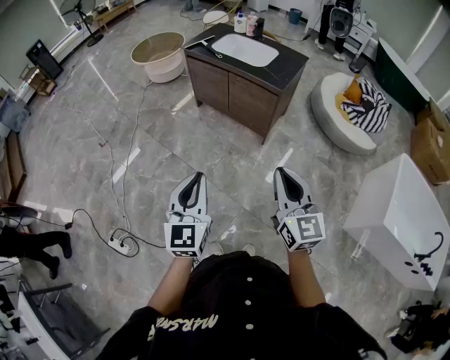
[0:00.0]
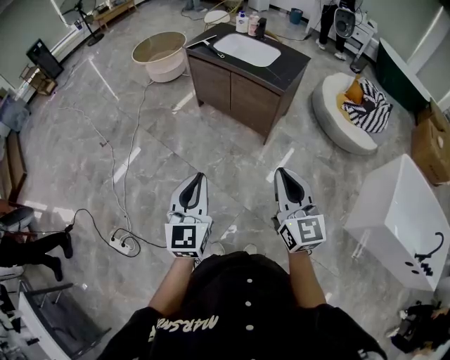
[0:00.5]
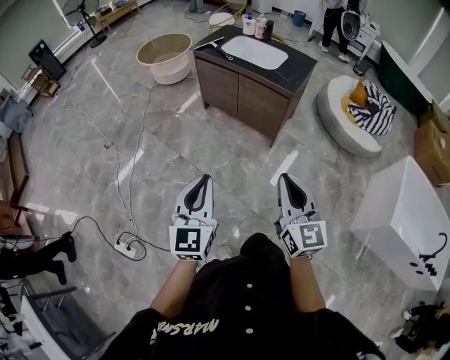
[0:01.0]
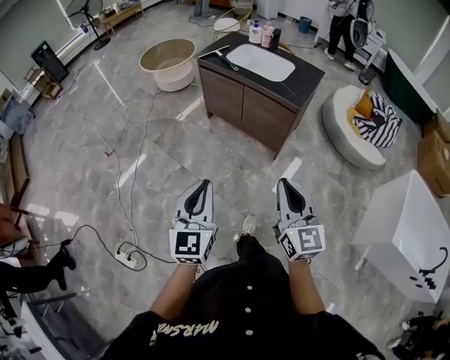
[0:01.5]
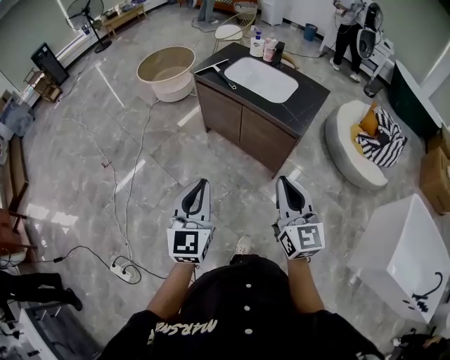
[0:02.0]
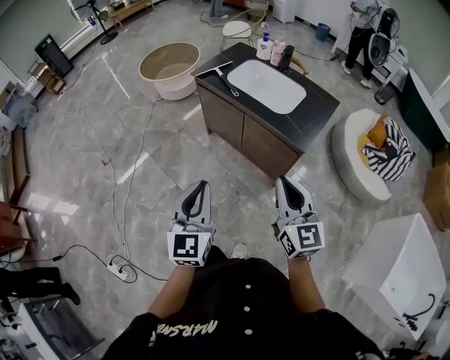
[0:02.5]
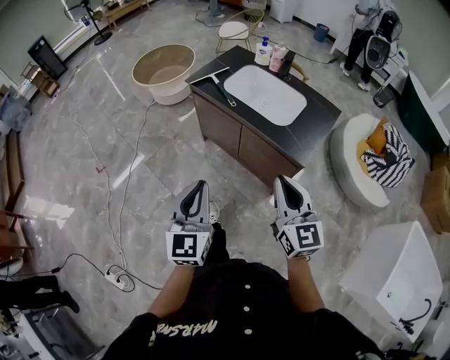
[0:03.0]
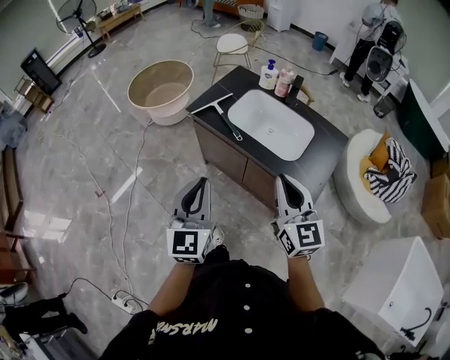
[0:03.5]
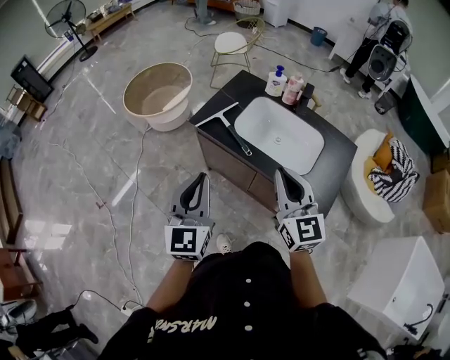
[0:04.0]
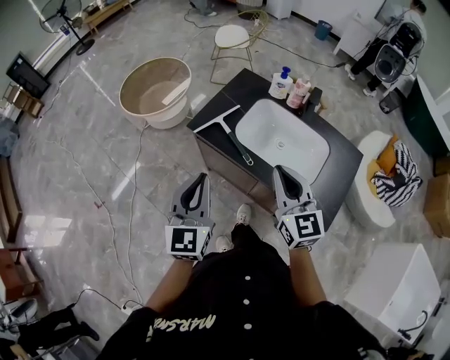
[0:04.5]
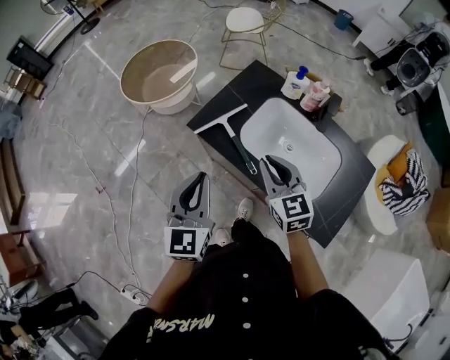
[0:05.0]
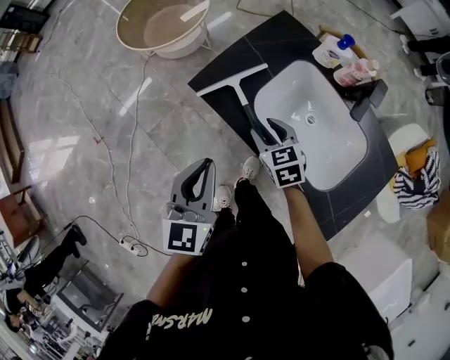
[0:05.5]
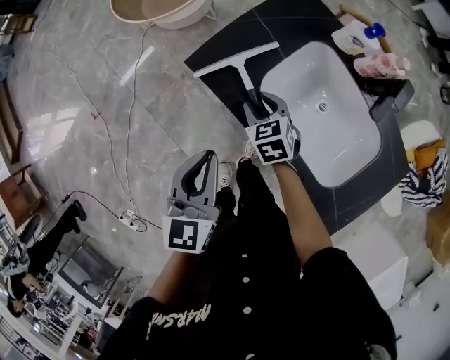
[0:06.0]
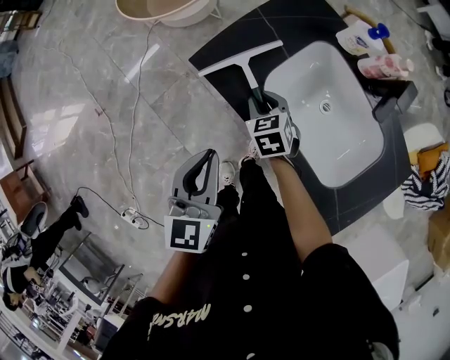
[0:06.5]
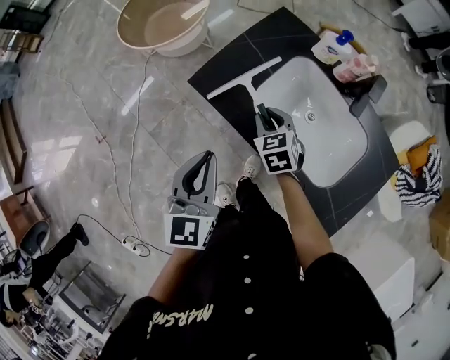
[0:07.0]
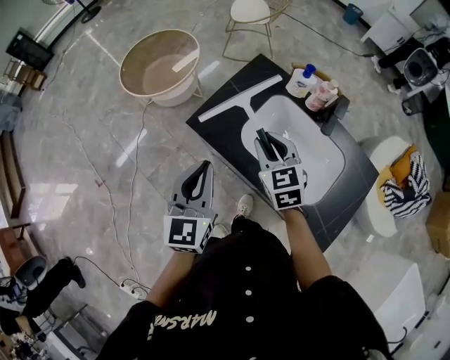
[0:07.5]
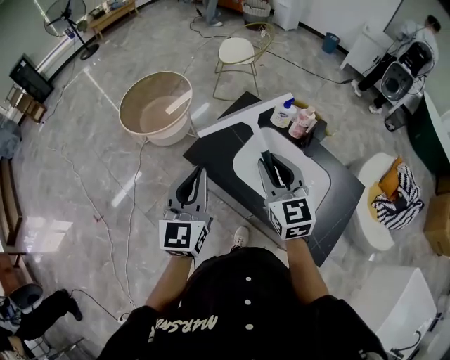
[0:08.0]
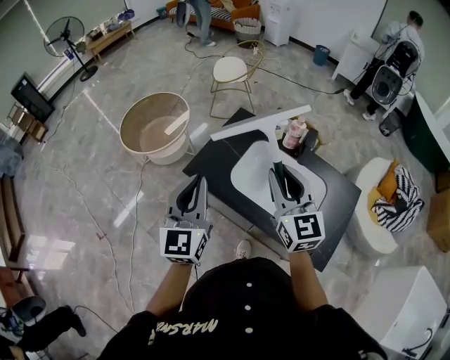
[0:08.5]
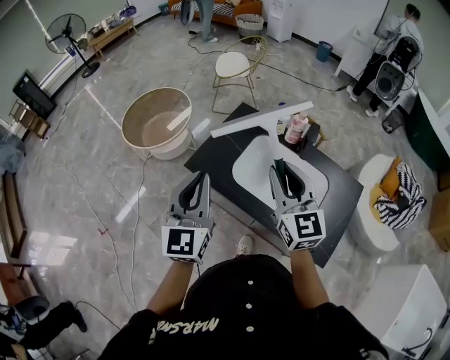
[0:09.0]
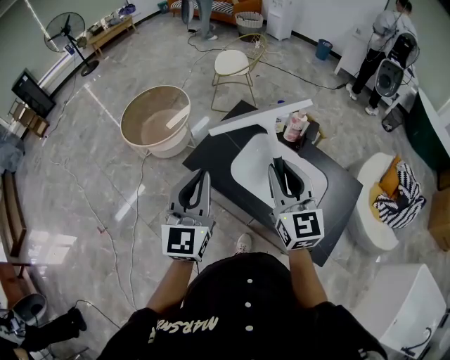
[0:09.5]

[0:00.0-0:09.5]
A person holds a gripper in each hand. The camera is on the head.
0:00.0 to 0:02.0: Both grippers move forward, about 25 cm.
0:02.0 to 0:04.0: Both grippers are carried forward, approximately 50 cm.
0:04.0 to 0:05.5: The right gripper shifts about 40 cm downward and forward, tilts its fingers approximately 40 degrees downward, and opens up. Meanwhile the left gripper travels forward and downward by roughly 25 cm.
0:05.5 to 0:07.5: The left gripper shifts about 5 cm upward. The right gripper goes about 15 cm upward, and closes up.
0:07.5 to 0:09.5: The left gripper travels upward by roughly 10 cm. The right gripper goes roughly 20 cm upward and backward, and rotates some 30 degrees.

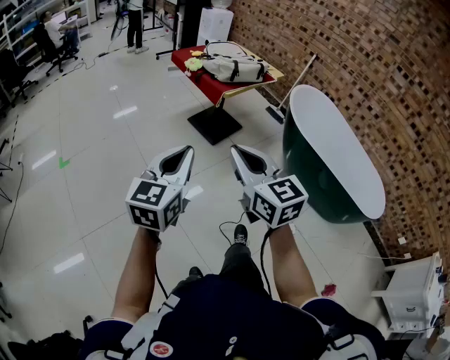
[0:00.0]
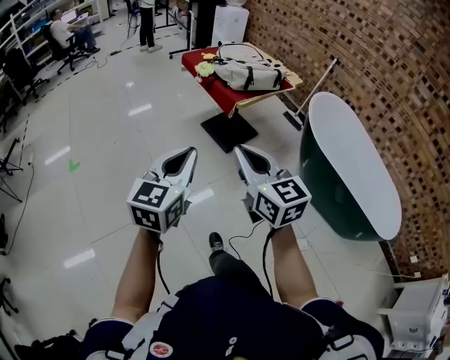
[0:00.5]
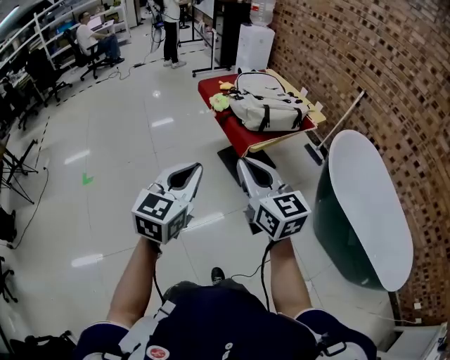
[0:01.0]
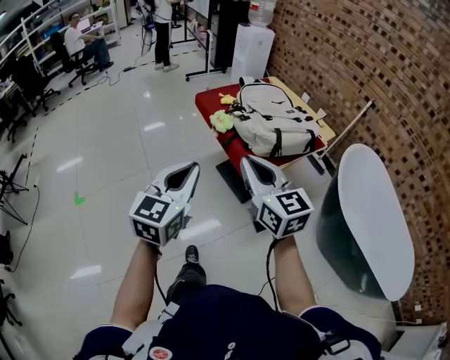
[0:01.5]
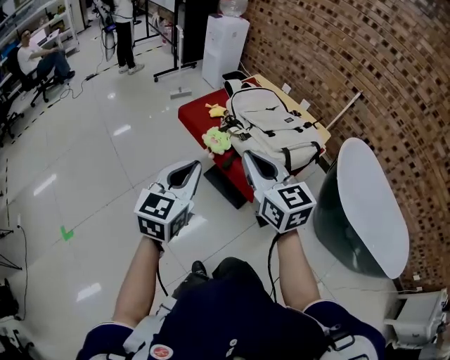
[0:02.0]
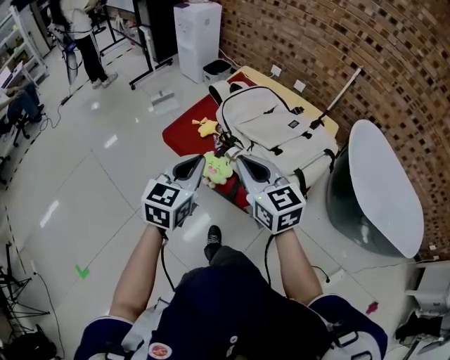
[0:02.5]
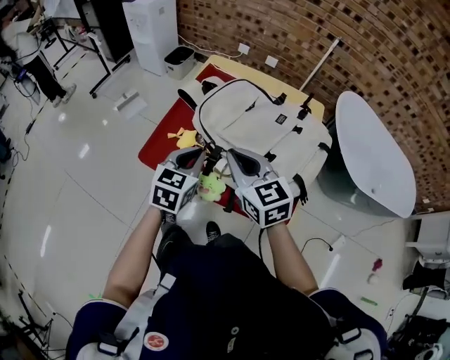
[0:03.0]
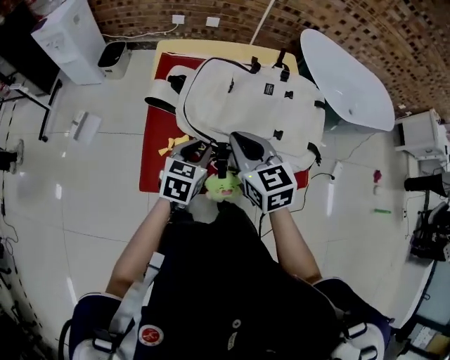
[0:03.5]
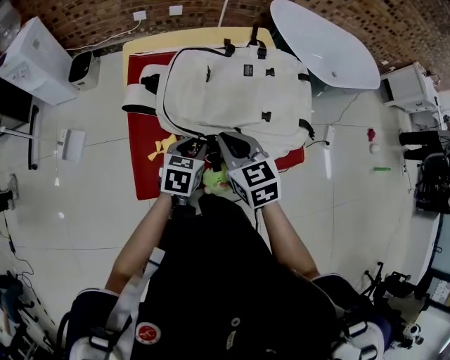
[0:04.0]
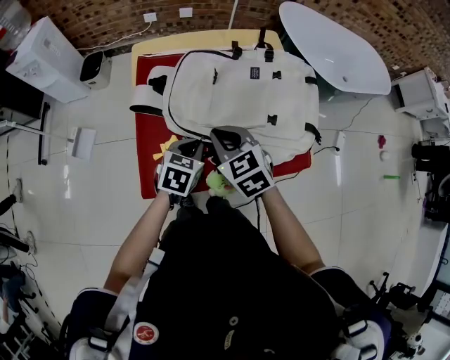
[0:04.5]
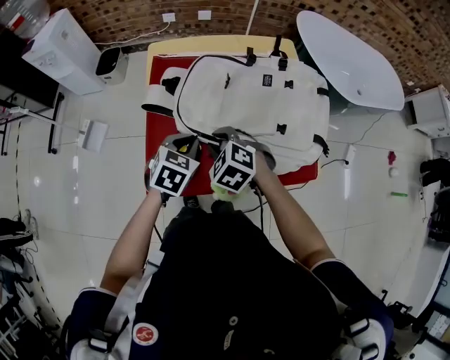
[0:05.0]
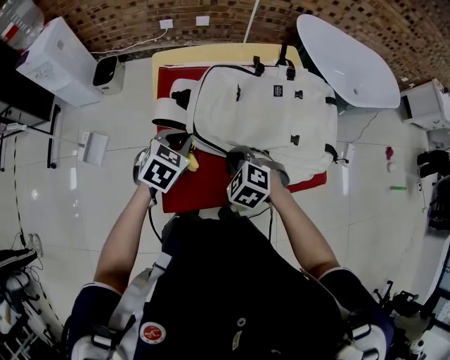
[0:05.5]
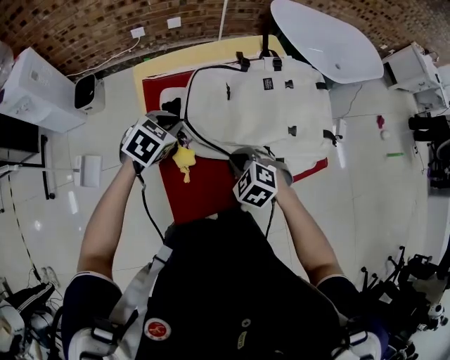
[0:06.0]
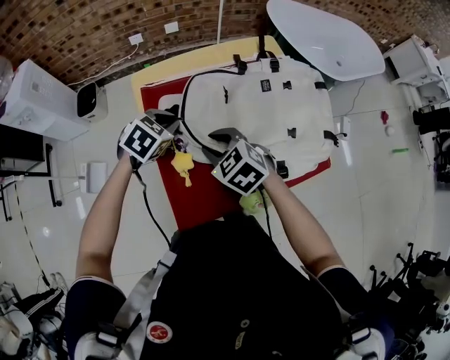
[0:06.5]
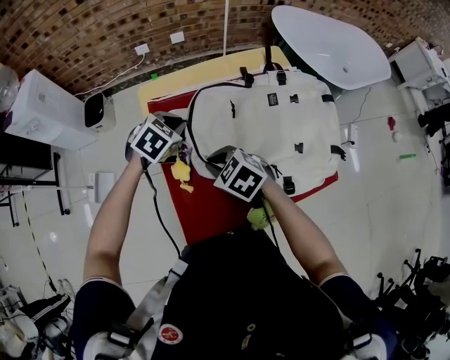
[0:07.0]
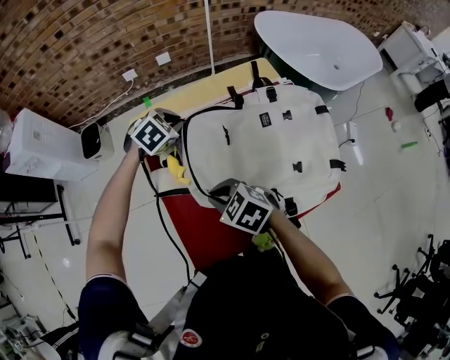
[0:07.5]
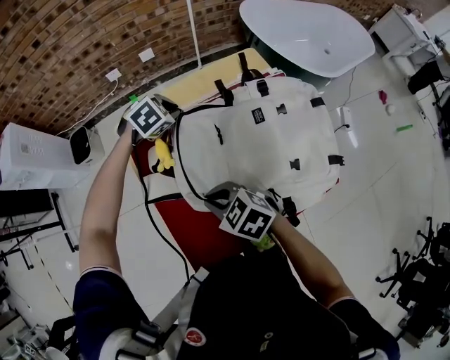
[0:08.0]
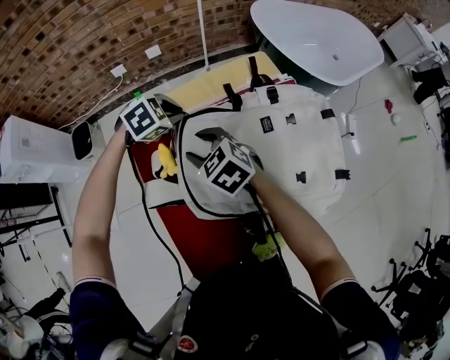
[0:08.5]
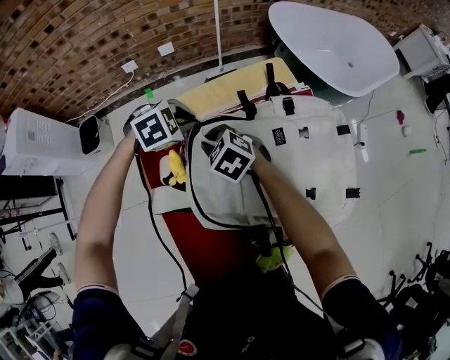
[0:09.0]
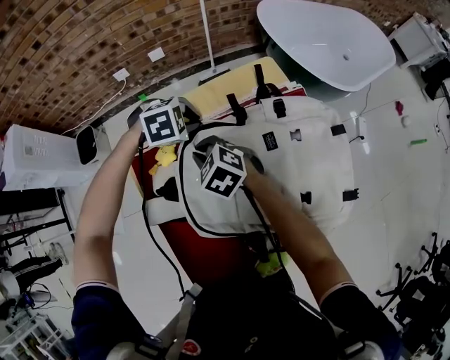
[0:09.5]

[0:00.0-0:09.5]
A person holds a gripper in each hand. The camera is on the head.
0:00.0 to 0:02.0: The pair of grippers is taken forward, roughly 60 cm.
0:02.0 to 0:04.0: The left gripper changes place by approximately 50 cm, angles its fingers downward, by roughly 30 degrees, and opens, while the right gripper changes place by approximately 35 cm, and changes its angle by some 60 degrees.
0:04.0 to 0:05.5: The right gripper heads downward and to the left, covering about 10 cm, and rotates approximately 50 degrees. Meanwhile the left gripper moves to the left and forward, about 15 cm, turns by some 20 degrees, and closes its fingers.
0:05.5 to 0:07.5: The left gripper moves forward, some 25 cm, and rotates approximately 30 degrees; the right gripper heads to the left and forward, covering about 10 cm, swivels some 30 degrees, and opens, then closes once more.
0:07.5 to 0:09.5: The left gripper moves some 10 cm, and changes its angle by some 30 degrees. Meanwhile the right gripper changes place by roughly 20 cm, and opens, then closes once more.

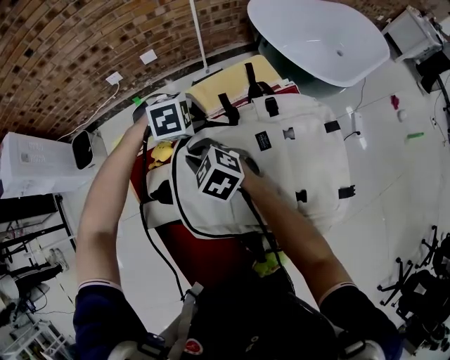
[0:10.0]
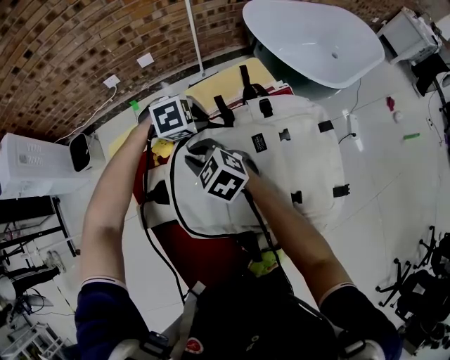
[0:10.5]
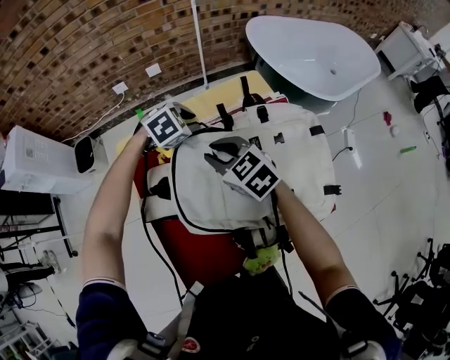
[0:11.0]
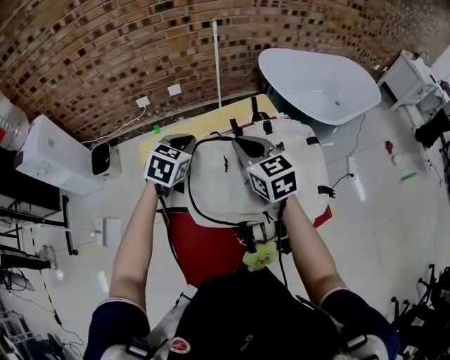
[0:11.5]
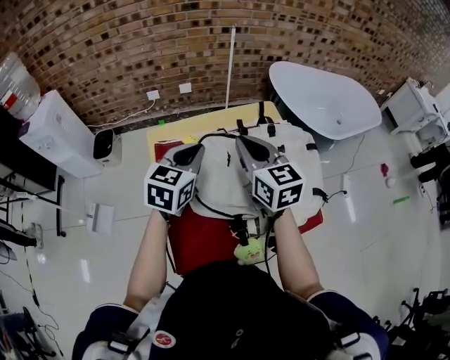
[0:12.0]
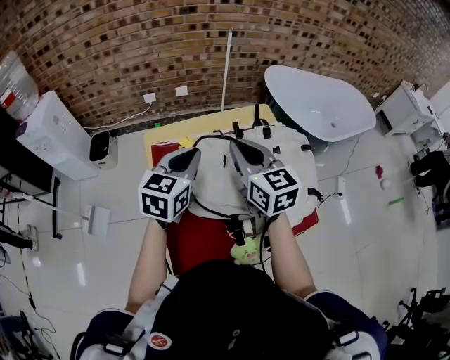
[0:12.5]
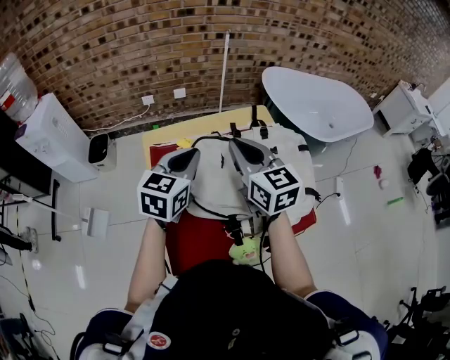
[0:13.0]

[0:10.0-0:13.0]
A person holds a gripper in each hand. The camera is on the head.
0:10.0 to 0:11.5: Both grippers move upward, some 15 cm. The left gripper turns by about 60 degrees, while the right gripper swivels approximately 40 degrees.
0:11.5 to 0:13.0: The right gripper heads upward and backward, covering approximately 10 cm; the left gripper moves backward and upward, approximately 15 cm, and turns by some 20 degrees.

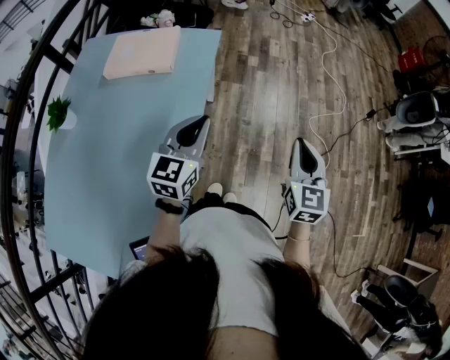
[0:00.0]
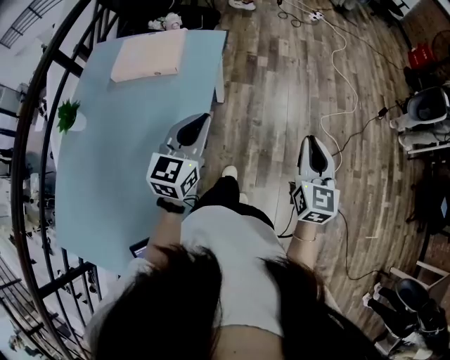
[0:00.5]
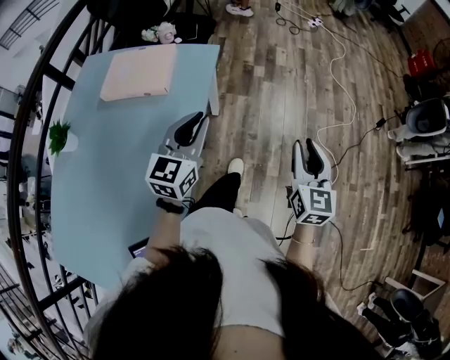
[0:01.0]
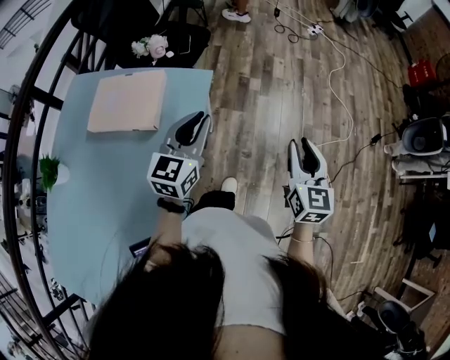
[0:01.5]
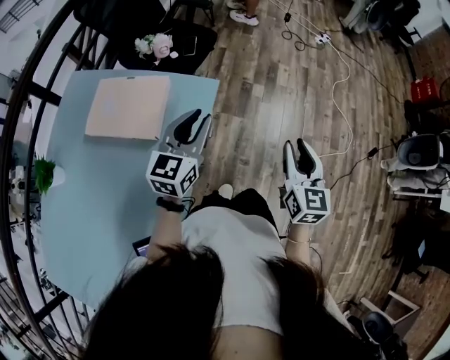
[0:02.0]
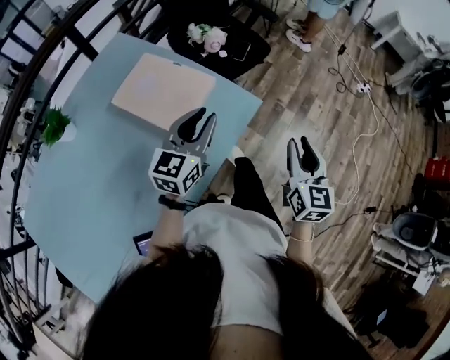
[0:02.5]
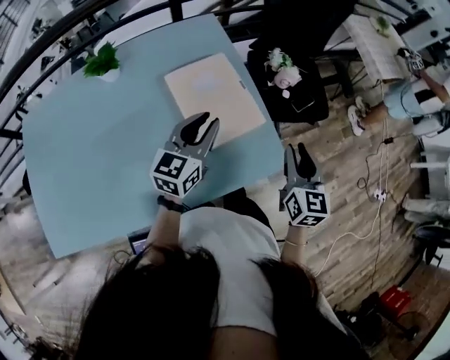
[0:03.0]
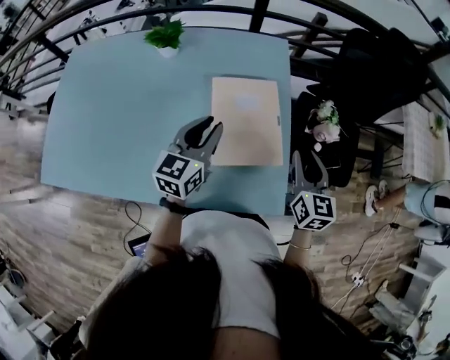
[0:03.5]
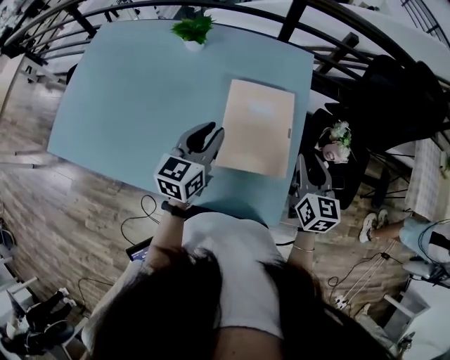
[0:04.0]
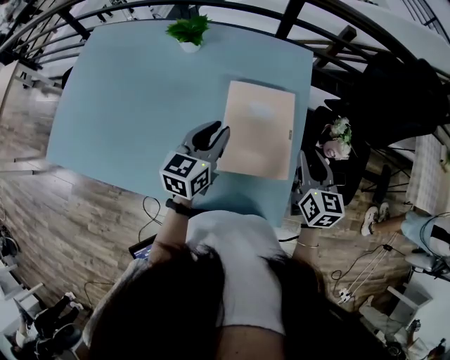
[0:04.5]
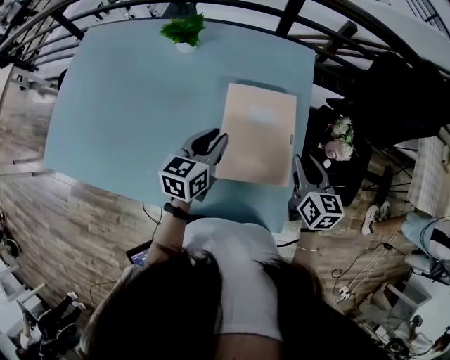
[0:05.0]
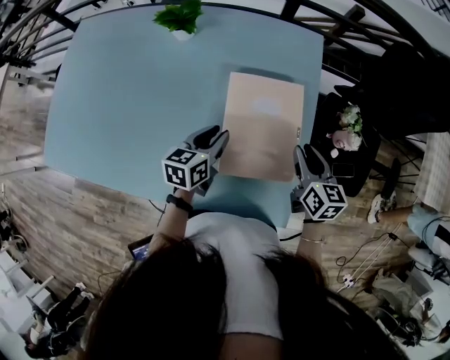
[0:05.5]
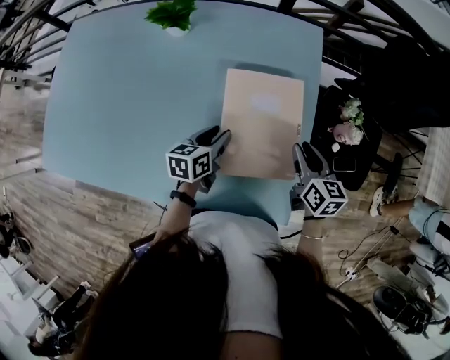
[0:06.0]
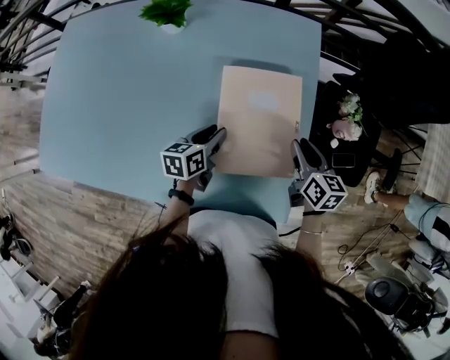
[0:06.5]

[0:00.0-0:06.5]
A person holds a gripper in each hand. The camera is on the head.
0:00.0 to 0:02.0: Both grippers move forward, approximately 30 cm.
0:02.0 to 0:04.5: The right gripper changes place by about 60 cm, and rotates roughly 90 degrees, while the left gripper changes place by roughly 30 cm, and swivels some 80 degrees.
0:04.5 to 0:06.5: The right gripper moves downward, about 10 cm. The left gripper is displaced downward by roughly 15 cm, and changes its angle by about 30 degrees.
